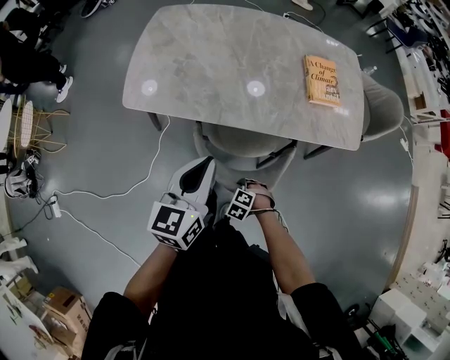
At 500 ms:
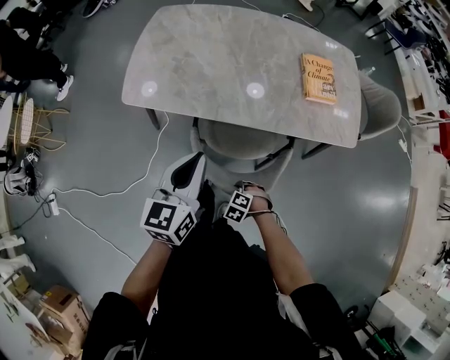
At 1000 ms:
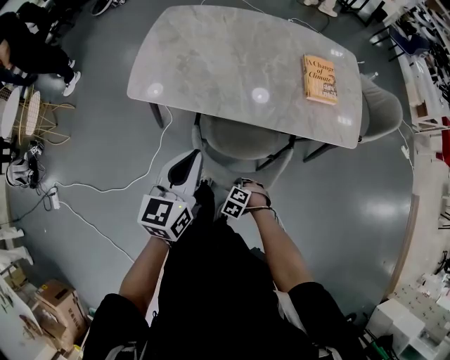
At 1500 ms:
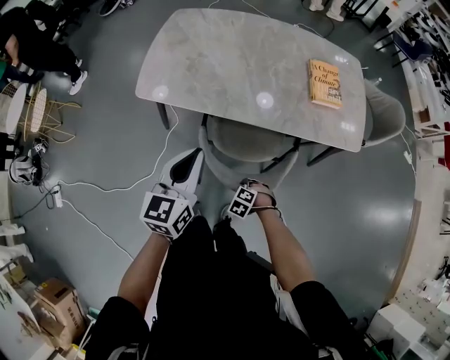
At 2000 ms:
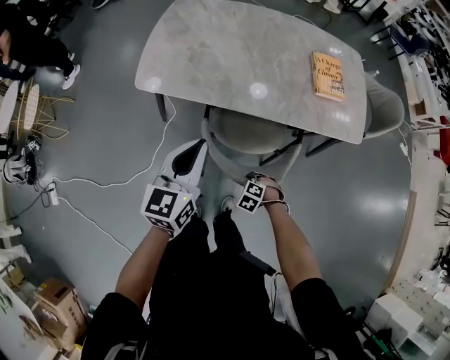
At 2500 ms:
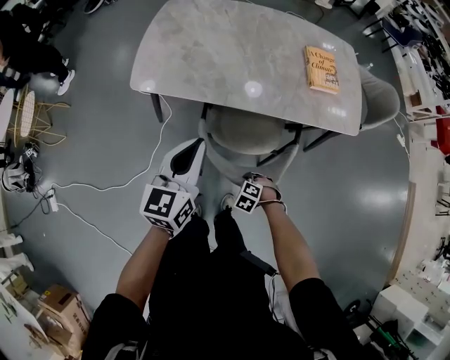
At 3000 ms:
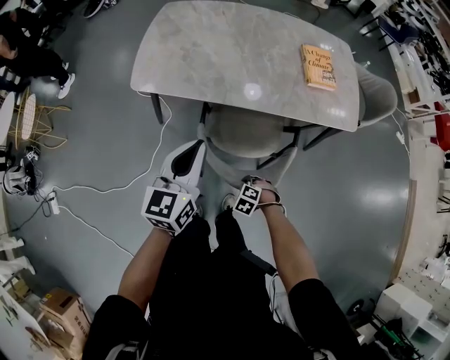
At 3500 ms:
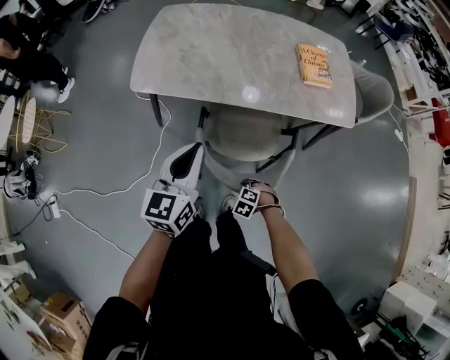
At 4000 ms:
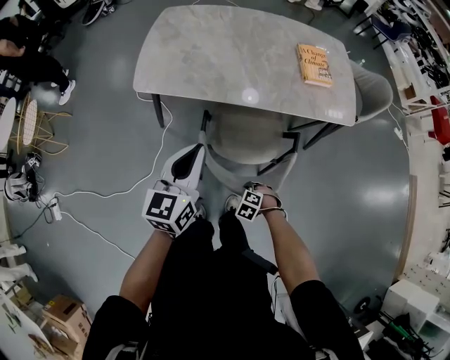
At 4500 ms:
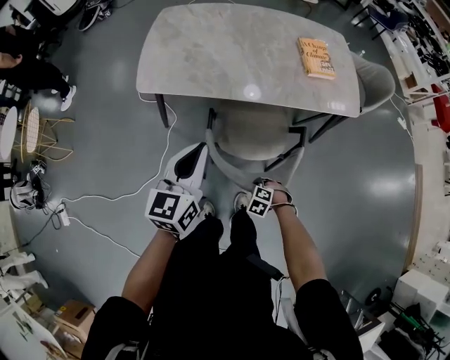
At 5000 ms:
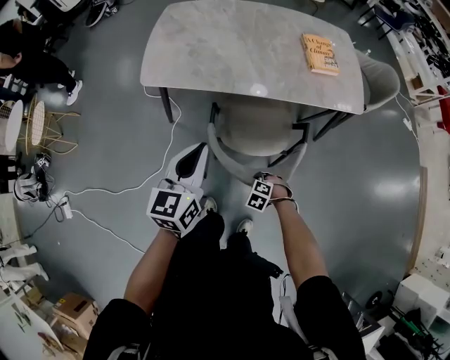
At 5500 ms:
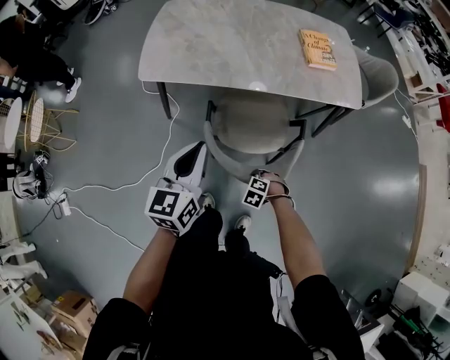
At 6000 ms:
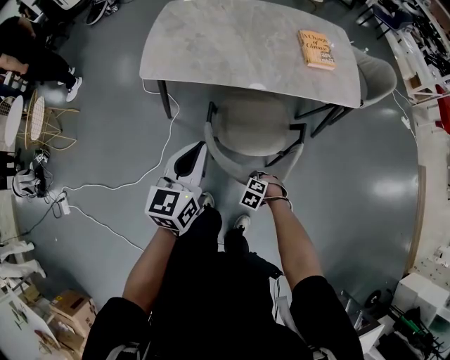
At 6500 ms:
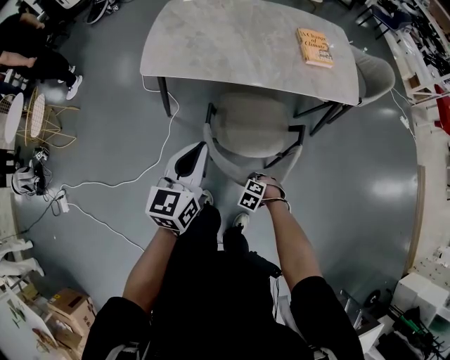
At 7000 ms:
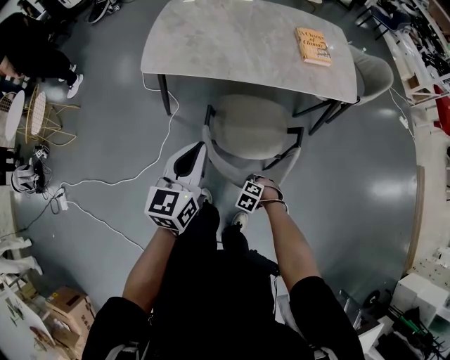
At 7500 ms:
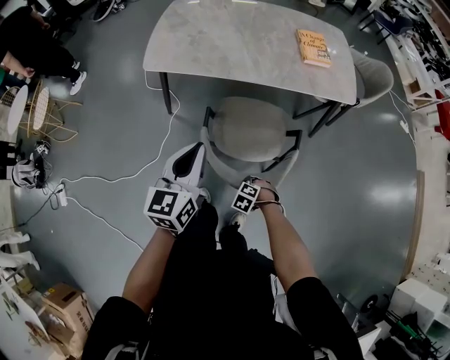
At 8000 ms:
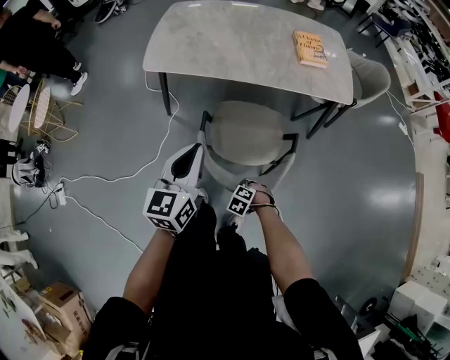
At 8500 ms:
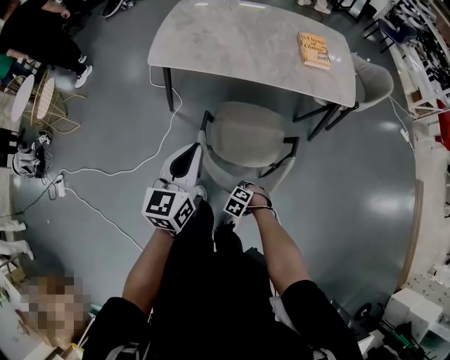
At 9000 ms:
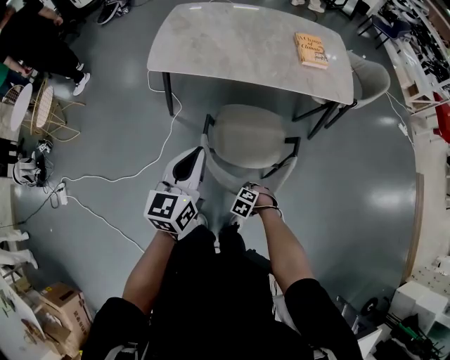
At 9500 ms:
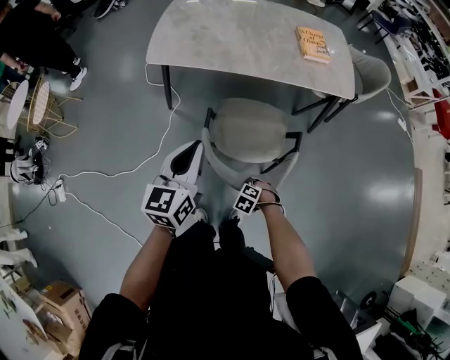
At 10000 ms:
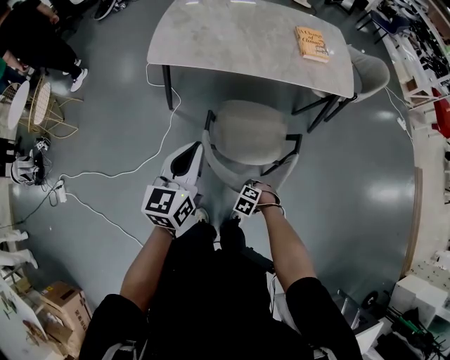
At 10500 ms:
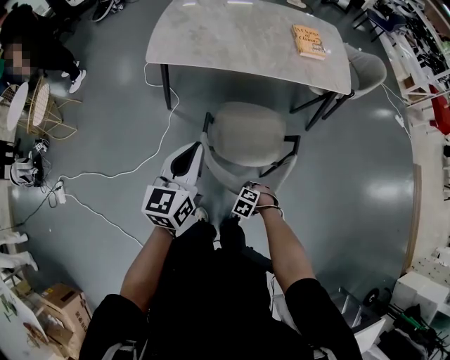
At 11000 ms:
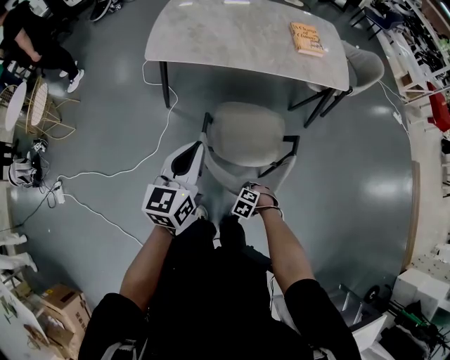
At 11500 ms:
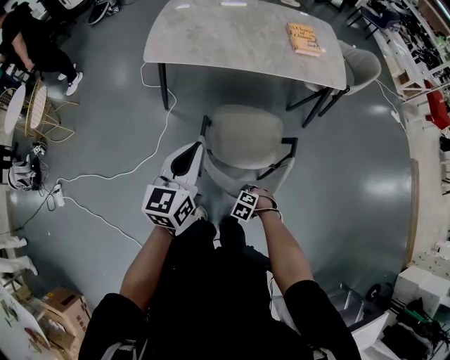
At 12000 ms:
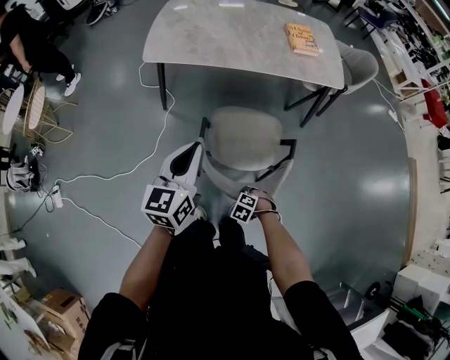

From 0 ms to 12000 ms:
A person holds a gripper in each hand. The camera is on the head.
From 0 ms to 2000 ms: The left gripper ends up roughly 5 cm from where it was.
From 2000 ms to 4000 ms: The right gripper shifts by some 10 cm. The left gripper ends up about 5 cm from where it was.
From 4000 ms to 6000 ms: The left gripper changes place by some 5 cm.
From 6000 ms to 8000 ms: The right gripper changes place by approximately 10 cm. The left gripper ends up some 10 cm from where it was.
From 8000 ms to 10000 ms: The grippers make only small movements.
From 10000 ms to 12000 ms: The right gripper changes place by approximately 5 cm.

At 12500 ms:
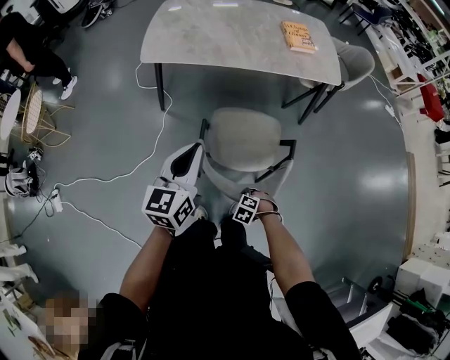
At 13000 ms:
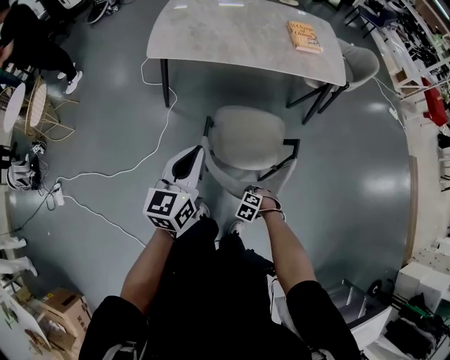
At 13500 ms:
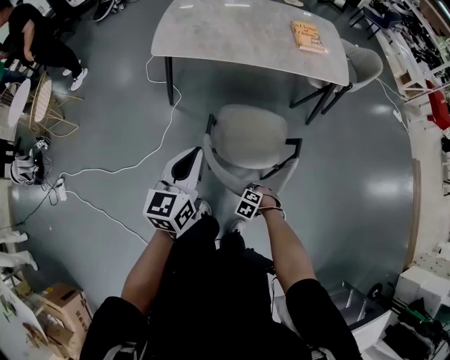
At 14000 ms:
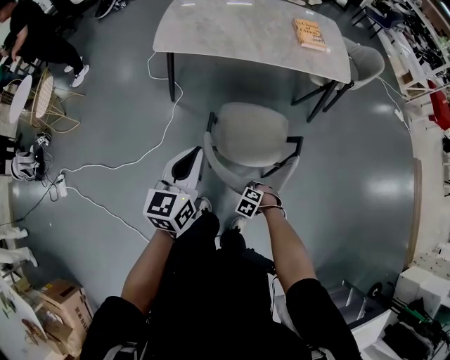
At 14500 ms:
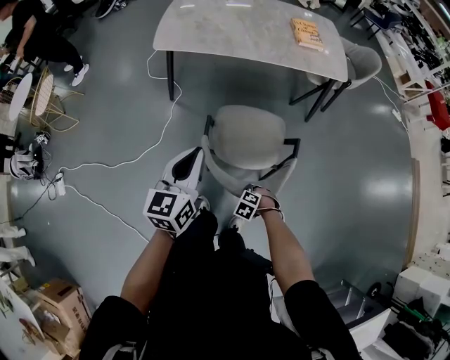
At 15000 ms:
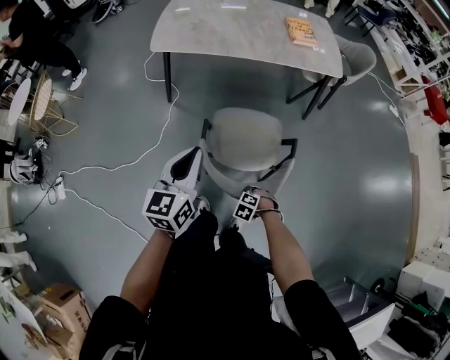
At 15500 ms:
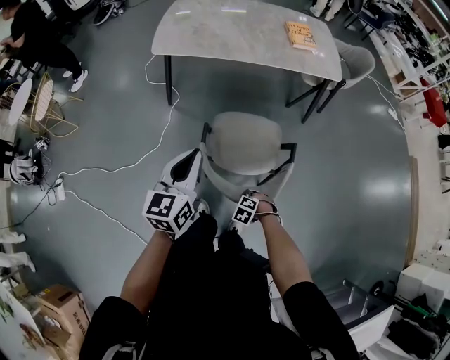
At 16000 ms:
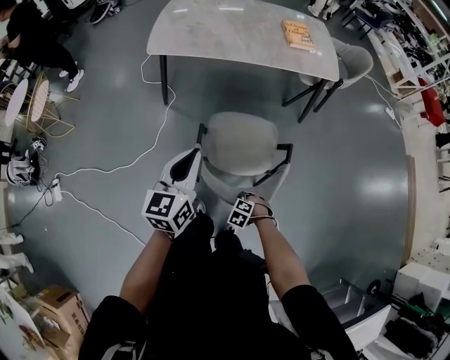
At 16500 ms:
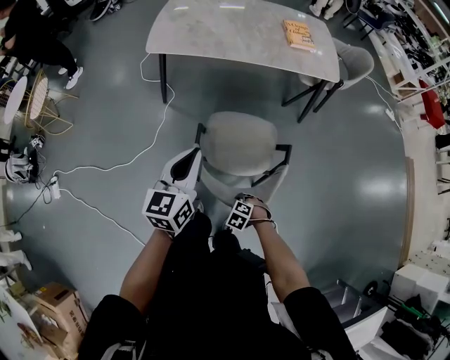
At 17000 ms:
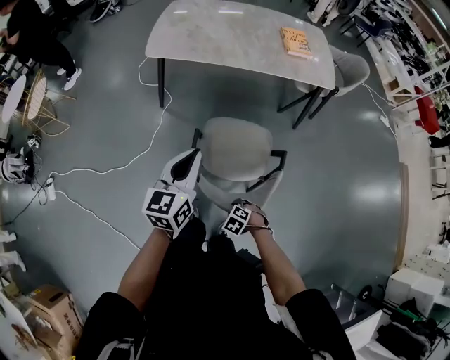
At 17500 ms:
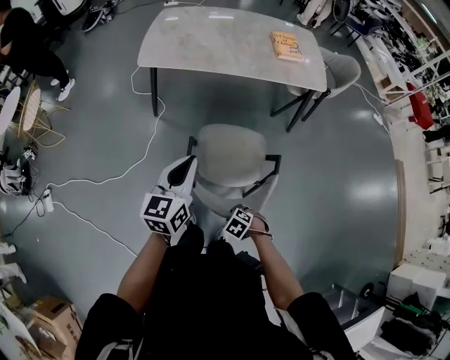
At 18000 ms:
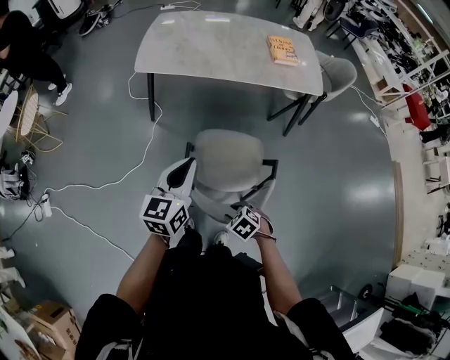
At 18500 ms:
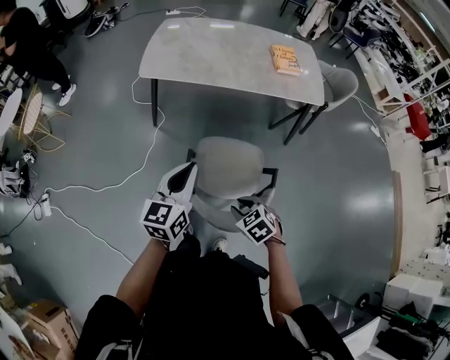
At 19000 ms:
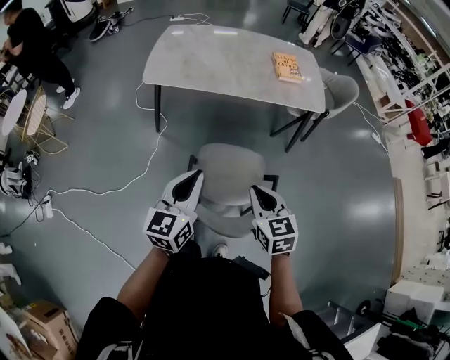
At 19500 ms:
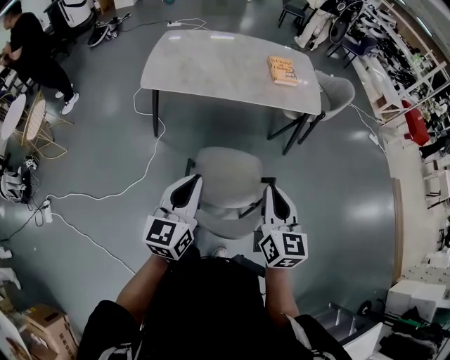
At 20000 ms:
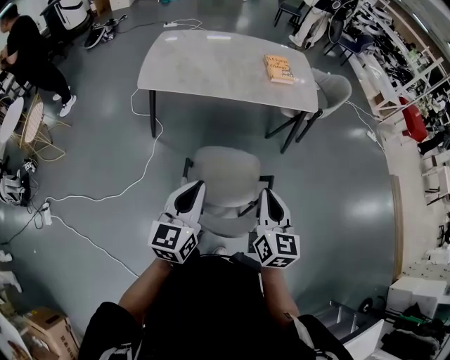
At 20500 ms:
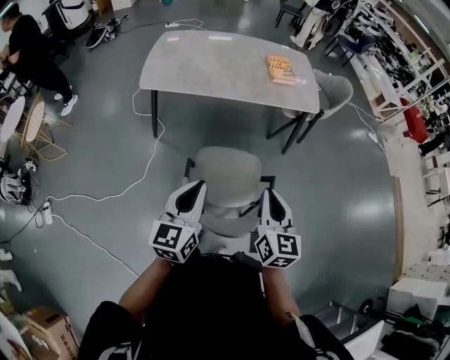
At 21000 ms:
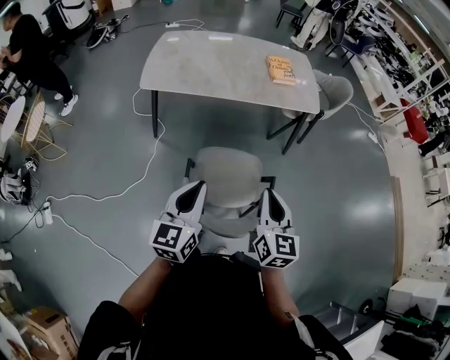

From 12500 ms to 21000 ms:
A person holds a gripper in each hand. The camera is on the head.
From 12500 ms to 14500 ms: The left gripper shifts by roughly 10 cm.
From 14500 ms to 16500 ms: There are only small adjustments of the grippers.
From 16500 ms to 19000 ms: The right gripper heads upward, covering approximately 35 cm, points its fingers roughly 50 degrees further upward, and closes; the left gripper shifts by about 5 cm.
From 19000 ms to 21000 ms: The right gripper moves upward, some 5 cm, and swivels approximately 30 degrees.

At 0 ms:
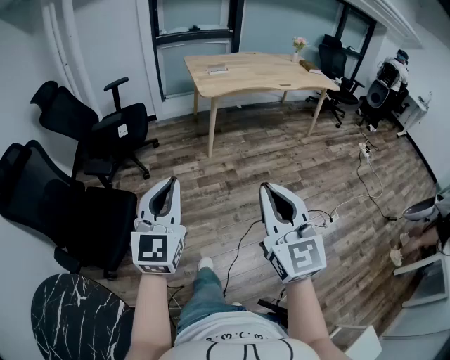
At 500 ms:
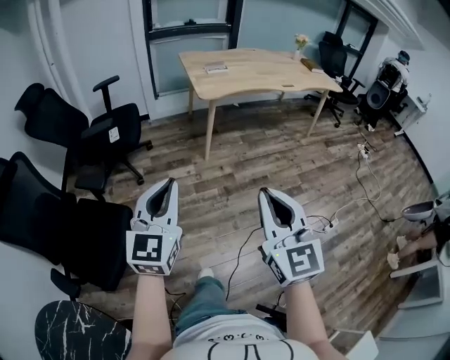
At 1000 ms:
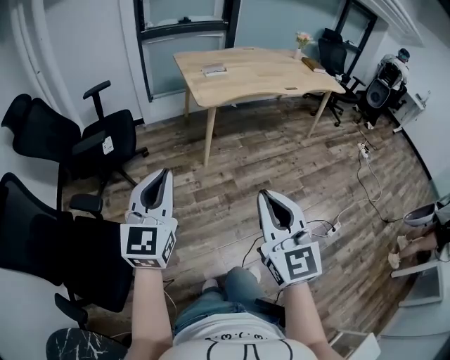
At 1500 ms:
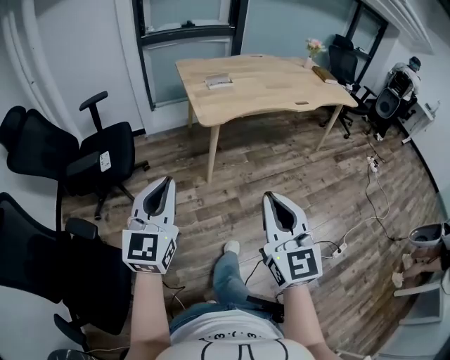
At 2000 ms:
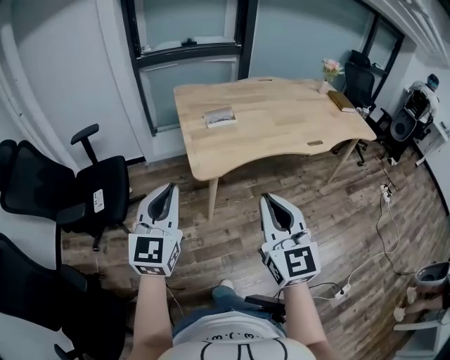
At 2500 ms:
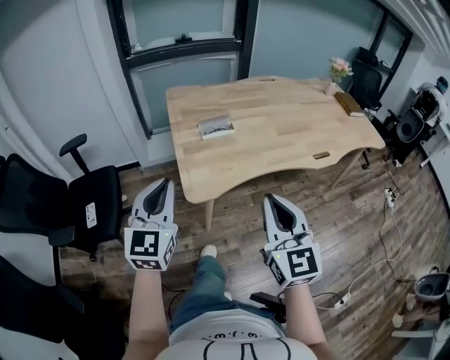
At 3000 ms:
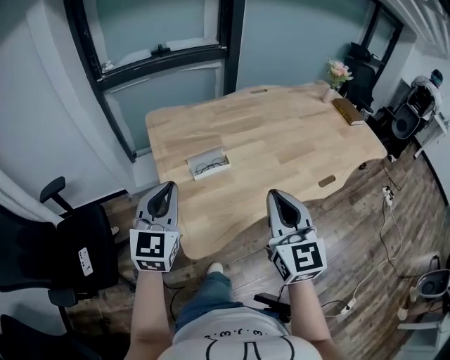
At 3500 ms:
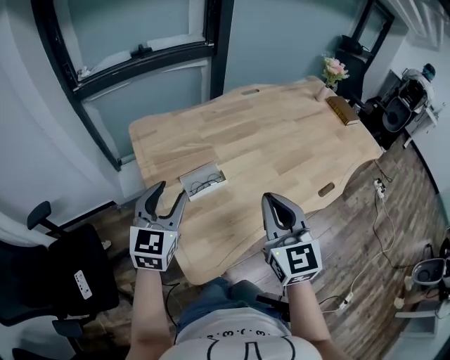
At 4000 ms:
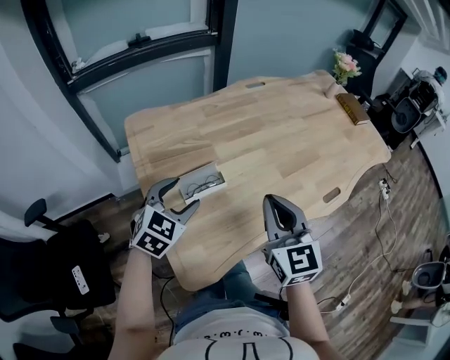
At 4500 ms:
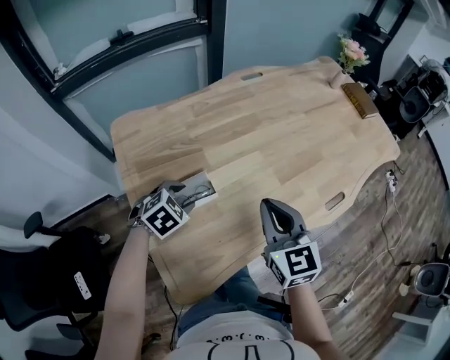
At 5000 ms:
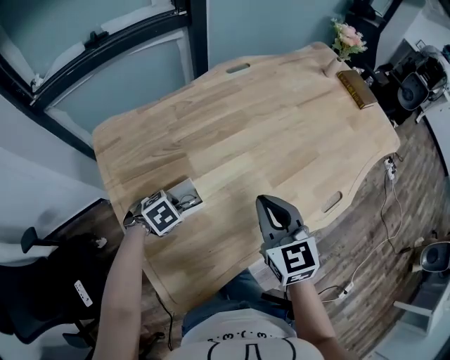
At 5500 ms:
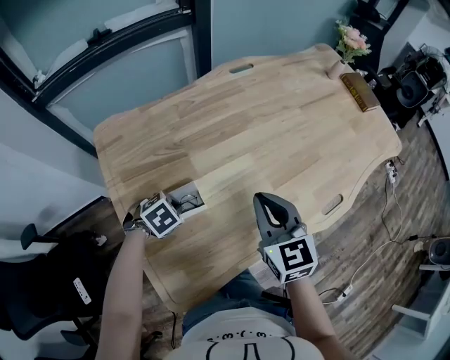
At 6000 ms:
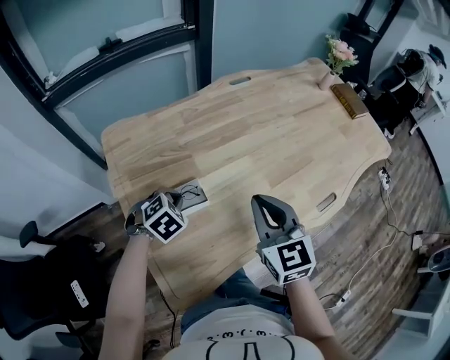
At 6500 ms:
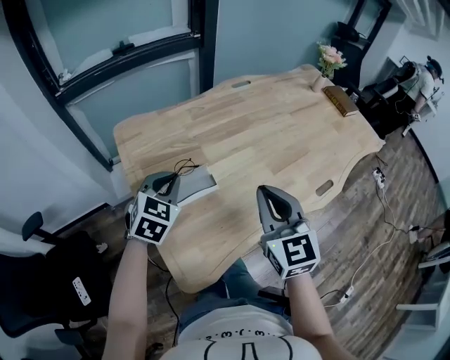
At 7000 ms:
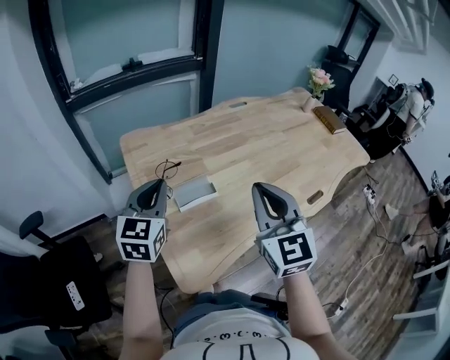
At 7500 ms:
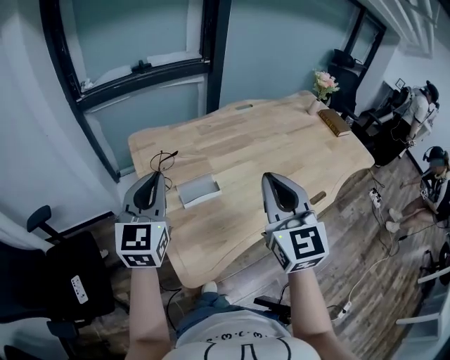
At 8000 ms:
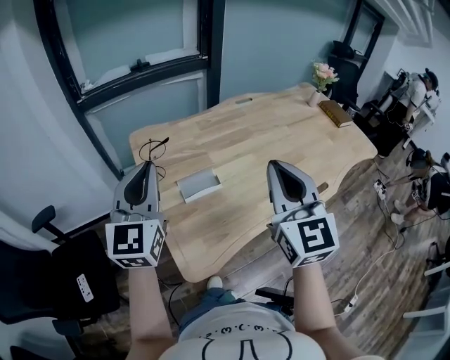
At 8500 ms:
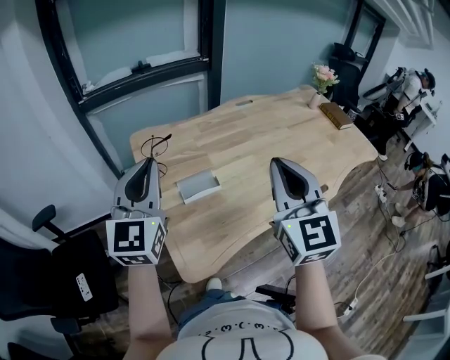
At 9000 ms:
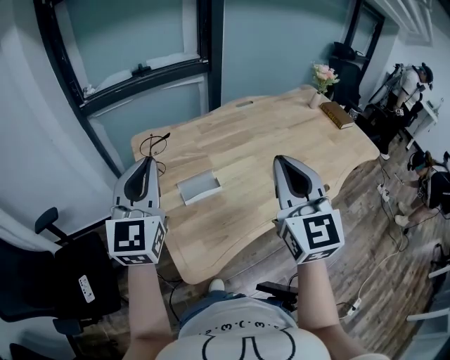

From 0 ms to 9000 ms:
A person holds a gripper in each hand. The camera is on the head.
From 0 ms to 2000 ms: Both grippers are carried forward, about 70 cm.
From 2000 ms to 4500 ms: The two grippers travel together, forward, some 60 cm. The right gripper turns by roughly 20 degrees, while the left gripper shifts about 25 cm downward, points its fingers some 60 degrees further downward, and opens its fingers.
From 4500 ms to 7000 ms: The right gripper shifts some 10 cm upward. Meanwhile the left gripper moves upward, about 20 cm, points its fingers some 50 degrees further upward, and closes up.
From 7000 ms to 9000 ms: The left gripper goes roughly 15 cm upward and backward, and turns by roughly 20 degrees; the right gripper moves upward, roughly 10 cm.
